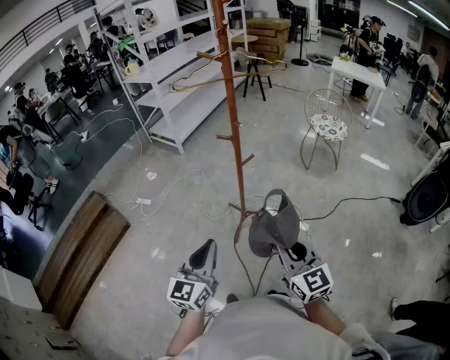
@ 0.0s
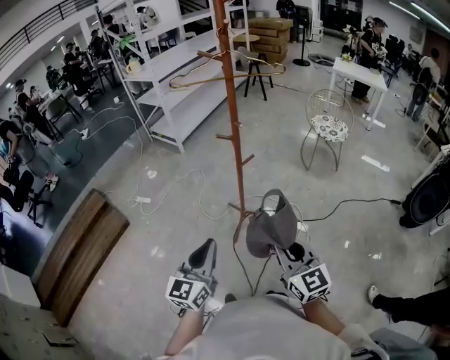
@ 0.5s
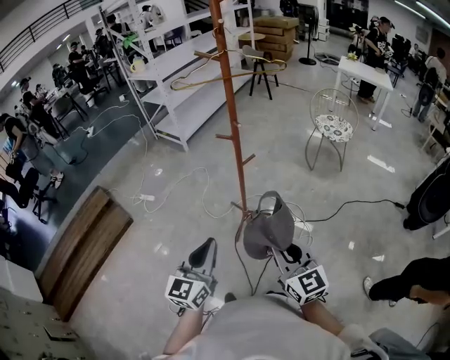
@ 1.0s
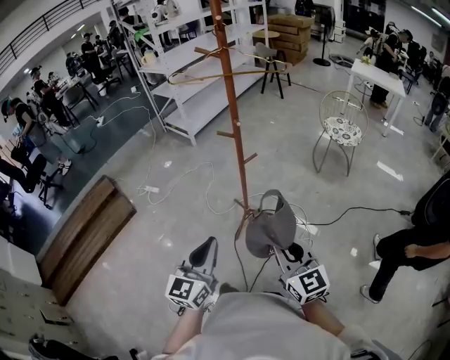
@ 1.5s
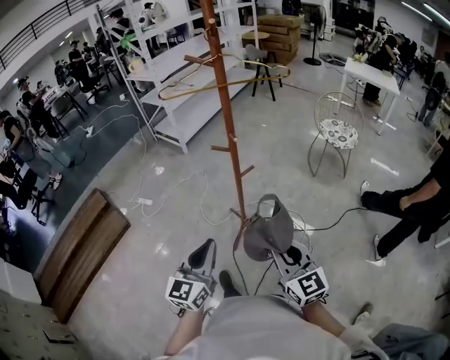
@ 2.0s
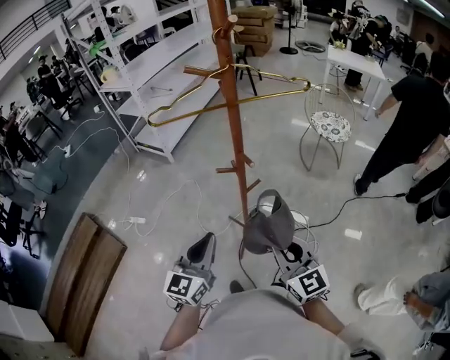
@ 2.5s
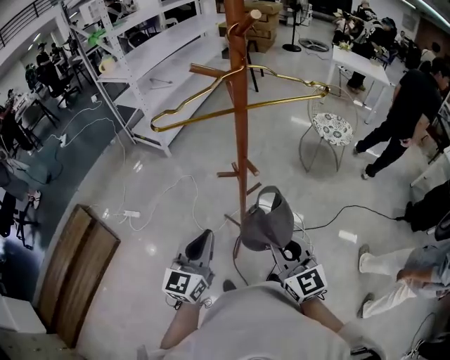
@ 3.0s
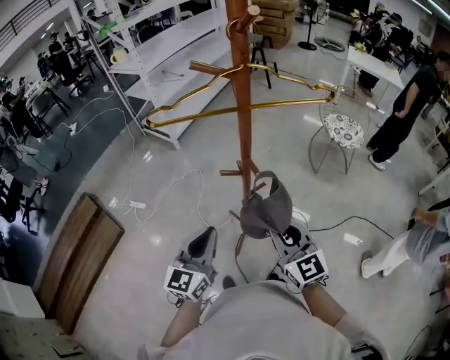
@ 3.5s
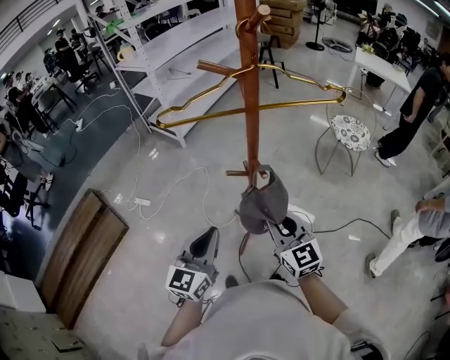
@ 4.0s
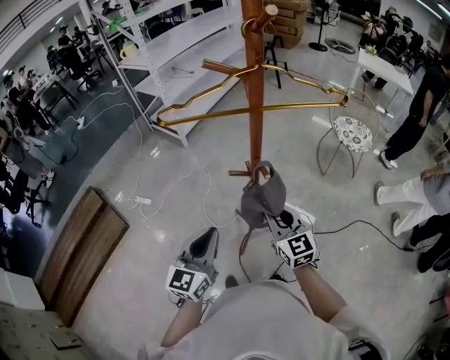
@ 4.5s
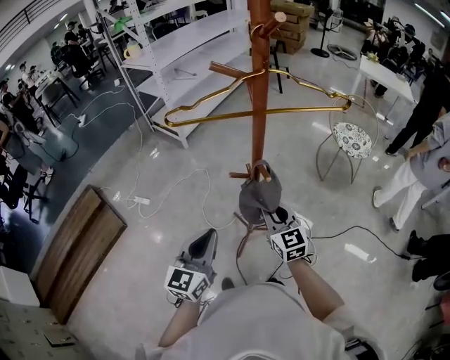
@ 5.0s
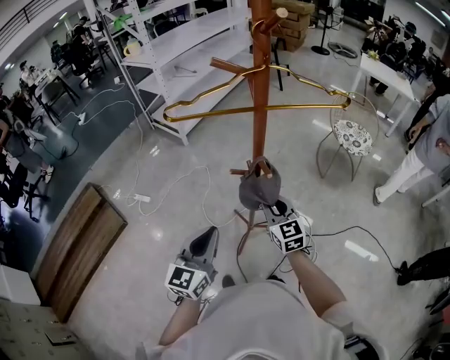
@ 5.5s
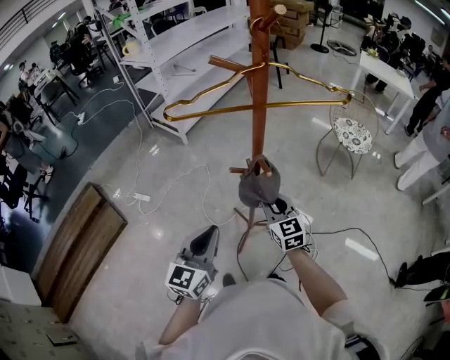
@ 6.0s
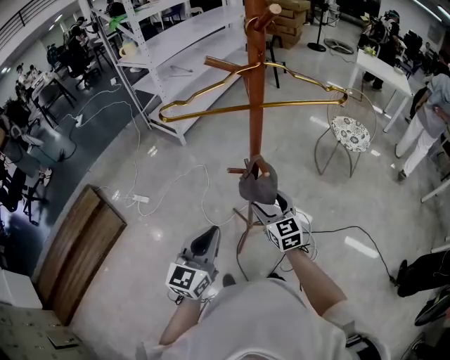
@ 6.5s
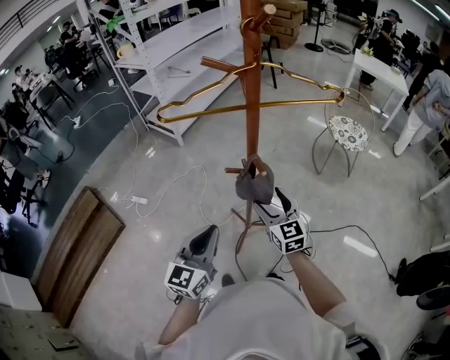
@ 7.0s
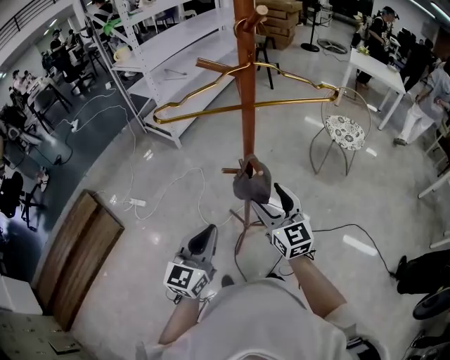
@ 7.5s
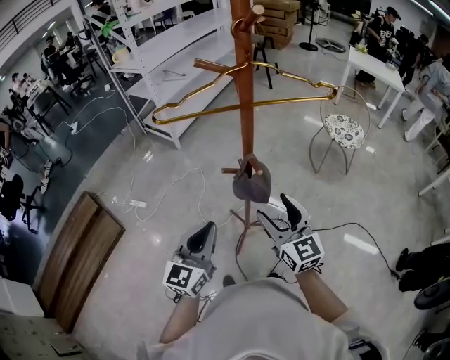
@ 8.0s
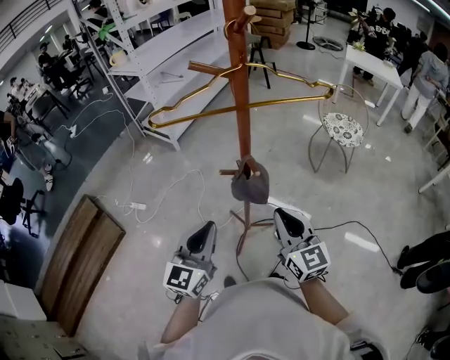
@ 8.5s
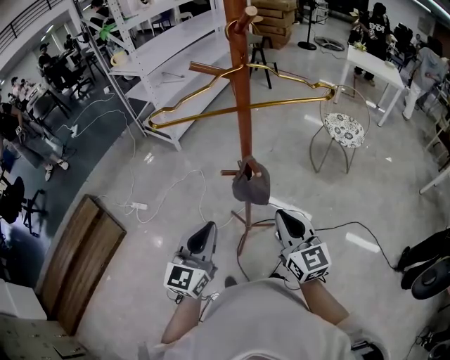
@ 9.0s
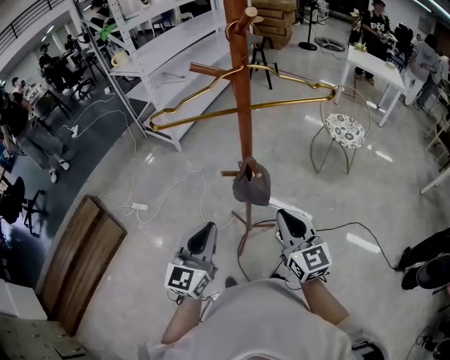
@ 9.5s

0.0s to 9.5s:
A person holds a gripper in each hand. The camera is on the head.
0.0s to 2.0s: Both grippers move forward, about 10 cm.
2.0s to 4.0s: Both grippers travel together forward, approximately 25 cm.
4.0s to 5.5s: The right gripper is displaced forward and downward by approximately 10 cm.
5.5s to 7.5s: The right gripper goes some 10 cm upward, and opens.
7.5s to 9.5s: The right gripper goes approximately 5 cm backward, and closes up.

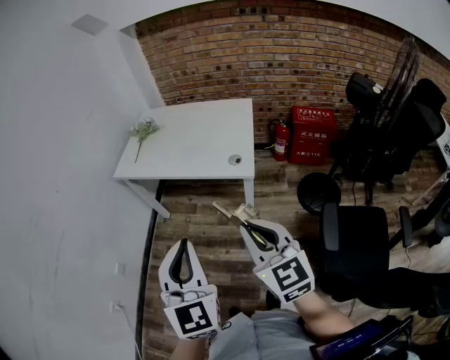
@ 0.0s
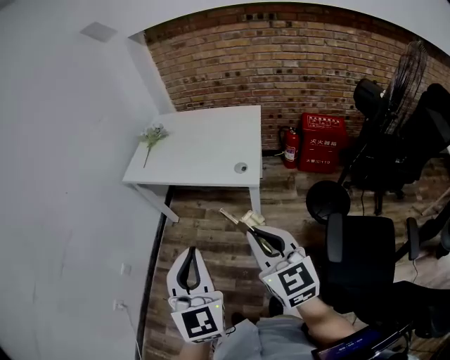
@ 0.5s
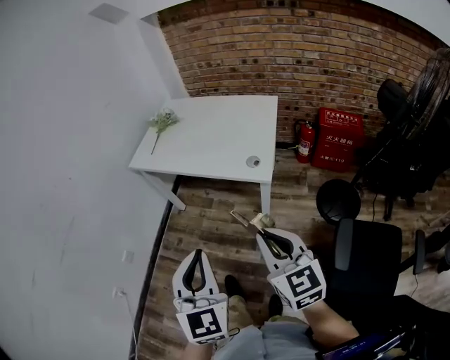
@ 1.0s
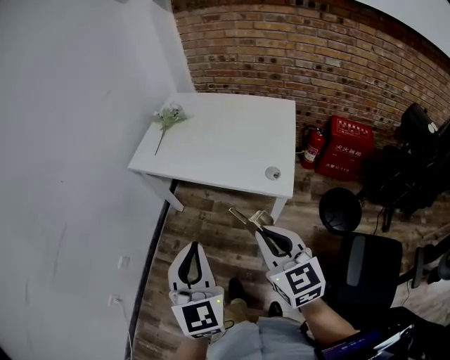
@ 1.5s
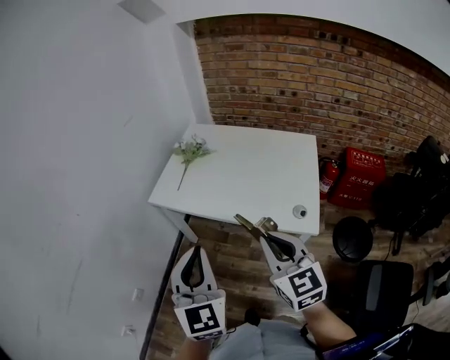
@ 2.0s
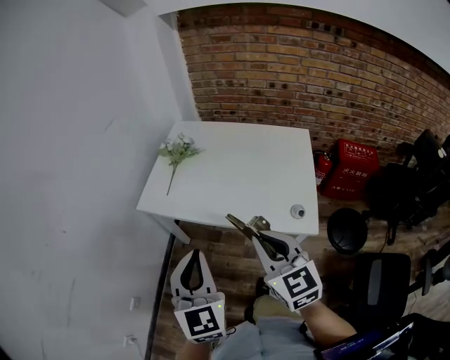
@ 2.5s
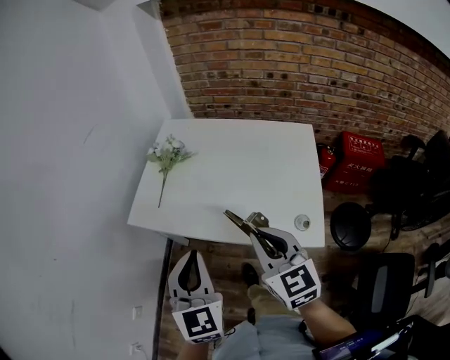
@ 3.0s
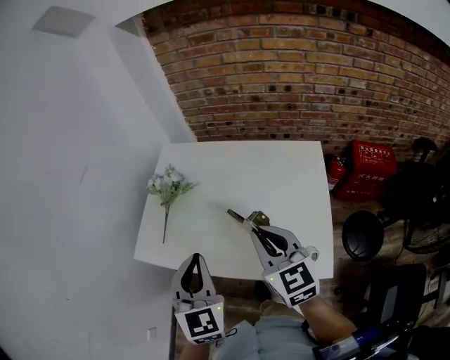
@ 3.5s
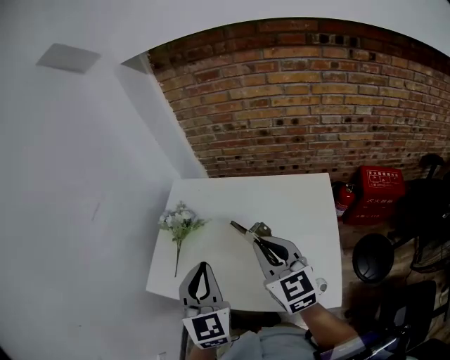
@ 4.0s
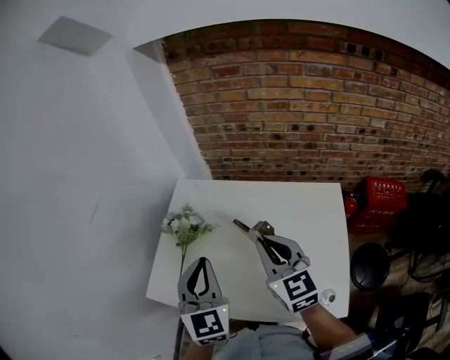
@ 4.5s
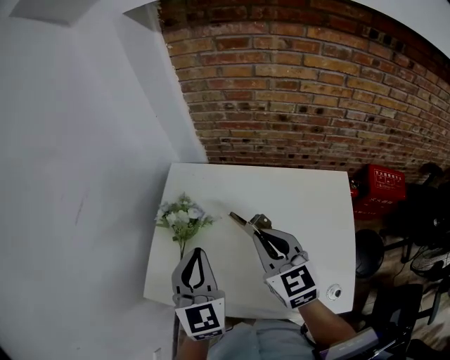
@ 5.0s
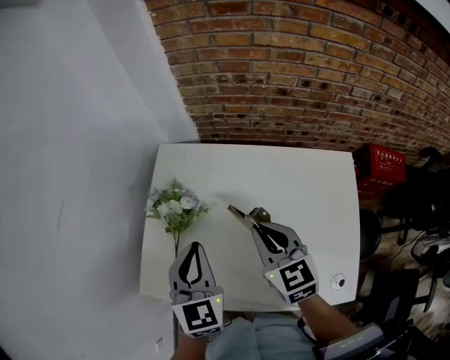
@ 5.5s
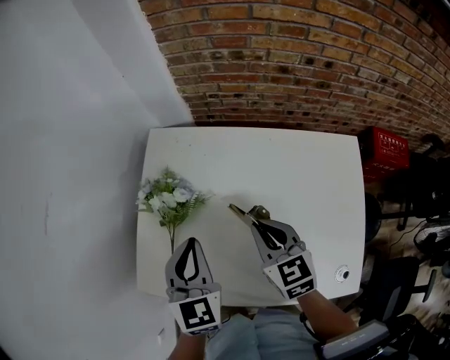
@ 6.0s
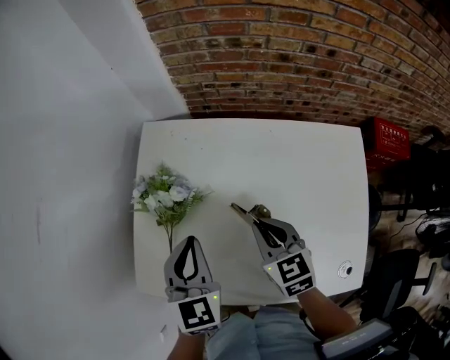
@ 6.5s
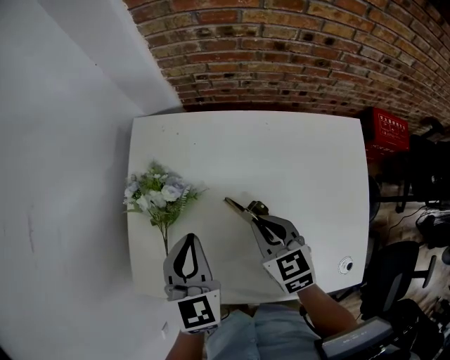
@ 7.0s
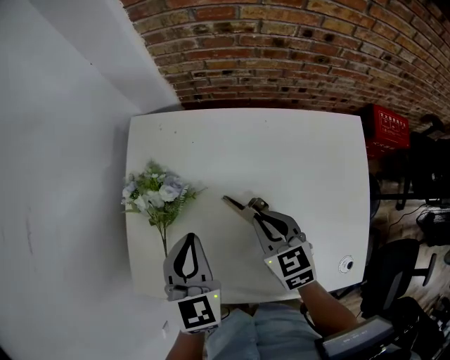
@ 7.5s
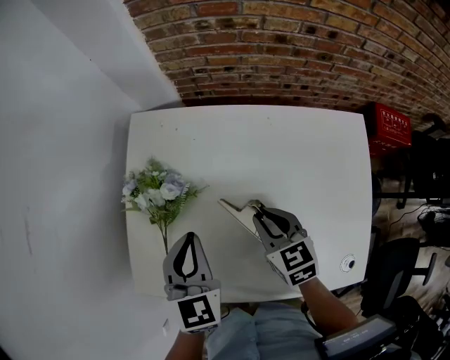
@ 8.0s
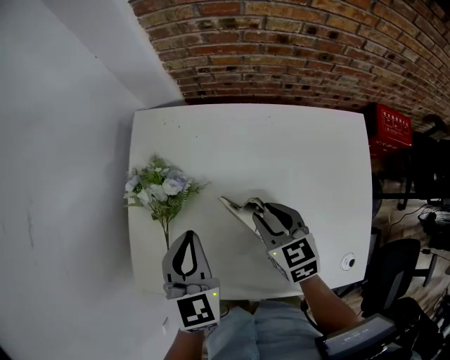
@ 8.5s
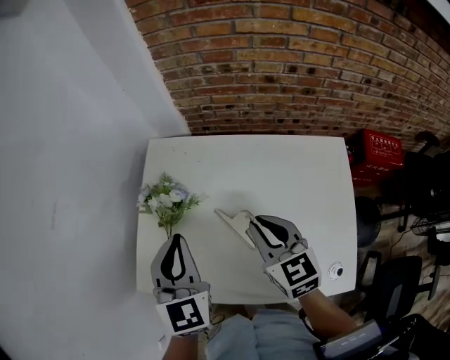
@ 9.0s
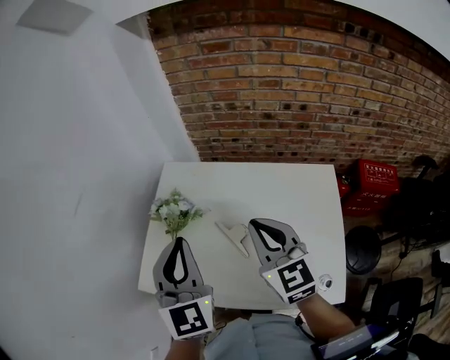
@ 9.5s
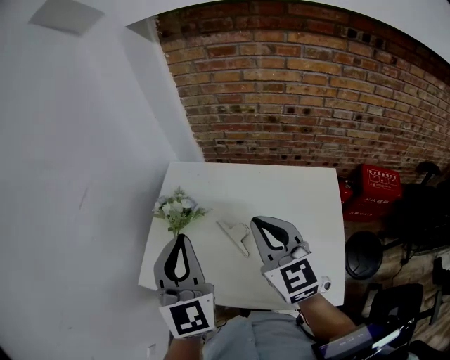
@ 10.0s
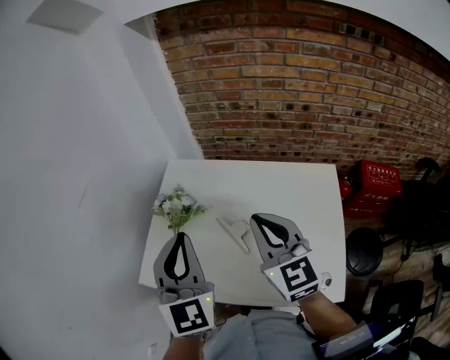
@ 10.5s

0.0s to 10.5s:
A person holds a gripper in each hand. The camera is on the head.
0.0s to 2.0s: The left gripper goes about 30 cm forward and to the left; the right gripper shifts some 25 cm forward.
2.0s to 4.0s: Both grippers travel together forward, some 35 cm.
4.0s to 6.5s: The left gripper moves forward, downward and to the left, about 25 cm; the right gripper is displaced downward and forward by about 25 cm, and swivels some 30 degrees.
6.5s to 8.5s: The right gripper opens its fingers.
8.5s to 10.5s: The left gripper travels upward and backward by about 25 cm, and rotates some 30 degrees, while the right gripper is displaced upward by approximately 25 cm, changes its angle by some 30 degrees, and closes.

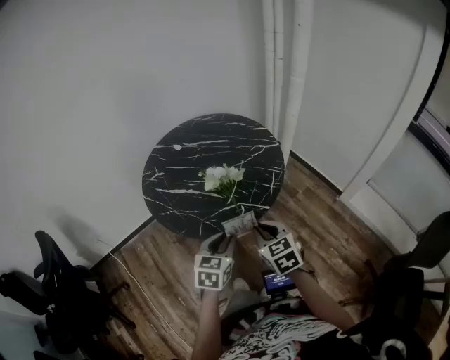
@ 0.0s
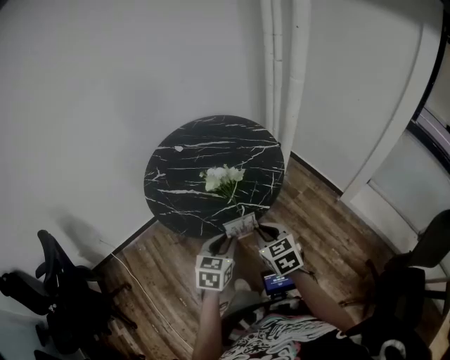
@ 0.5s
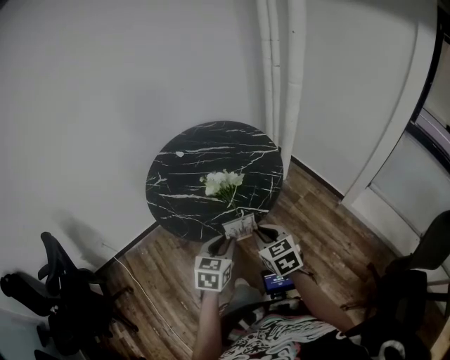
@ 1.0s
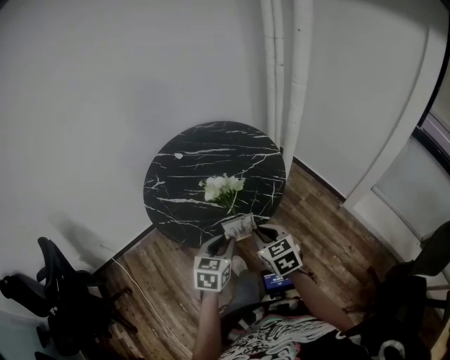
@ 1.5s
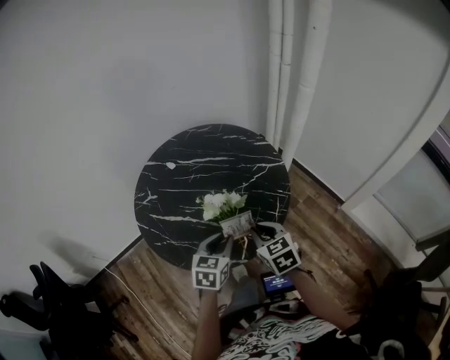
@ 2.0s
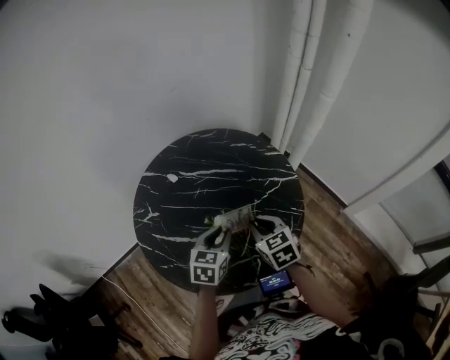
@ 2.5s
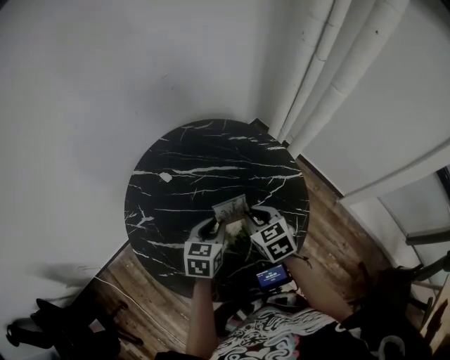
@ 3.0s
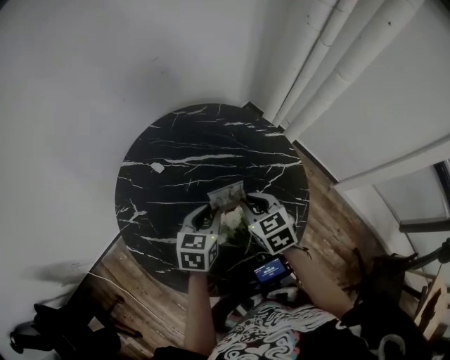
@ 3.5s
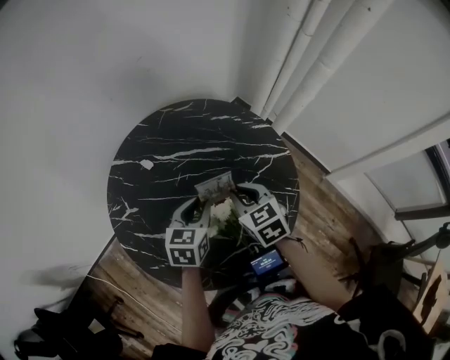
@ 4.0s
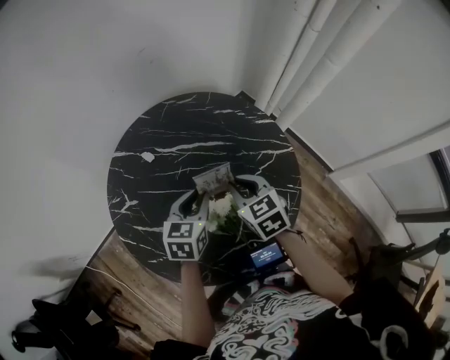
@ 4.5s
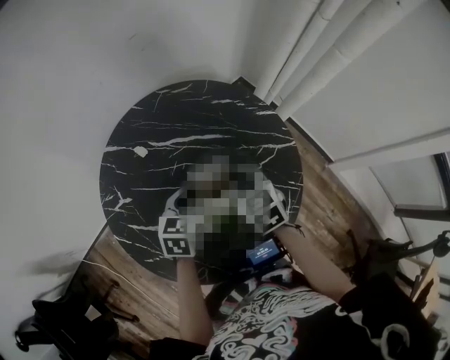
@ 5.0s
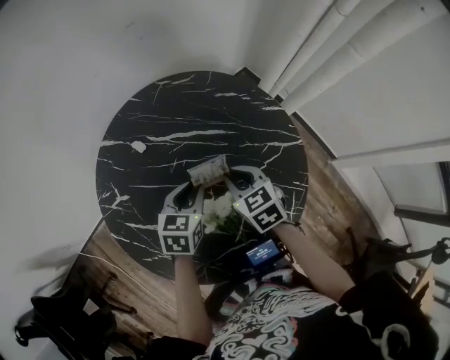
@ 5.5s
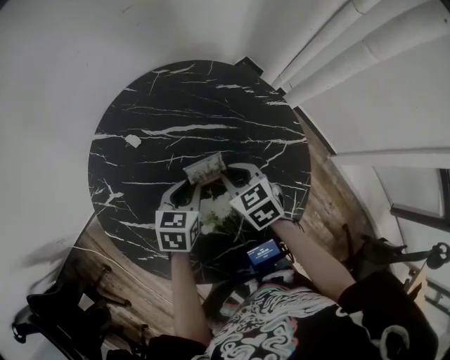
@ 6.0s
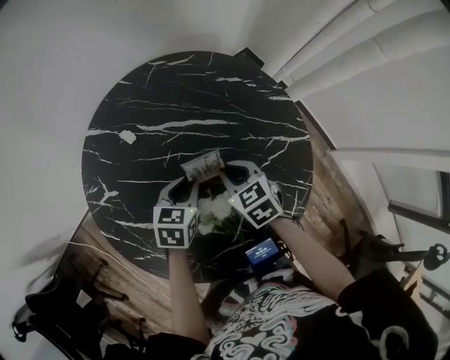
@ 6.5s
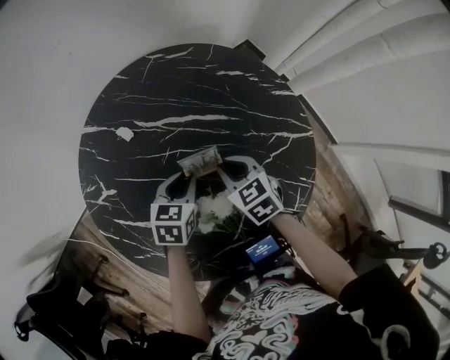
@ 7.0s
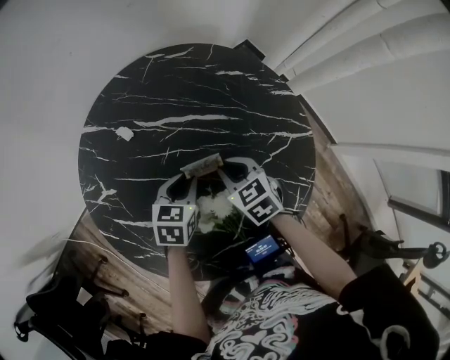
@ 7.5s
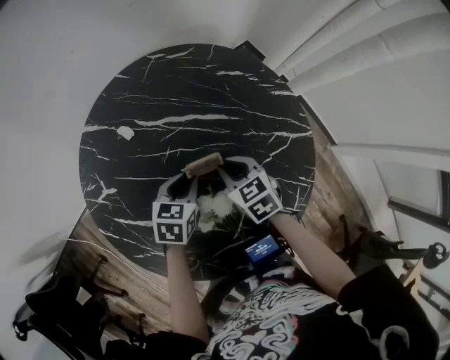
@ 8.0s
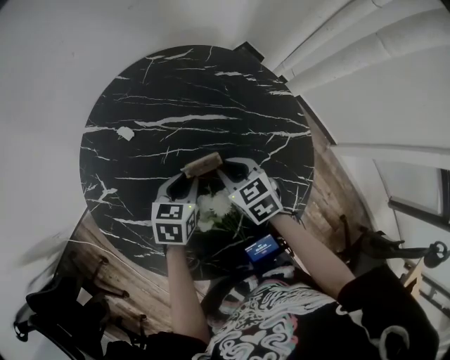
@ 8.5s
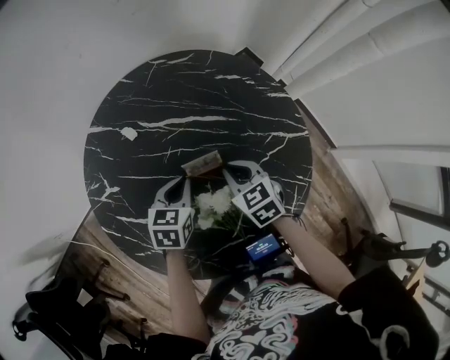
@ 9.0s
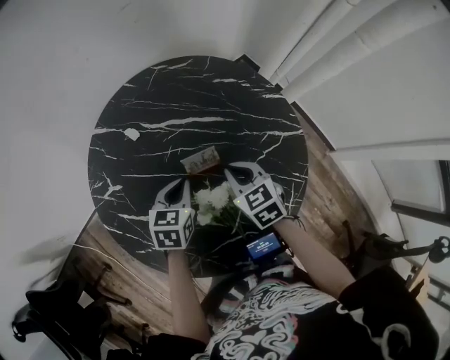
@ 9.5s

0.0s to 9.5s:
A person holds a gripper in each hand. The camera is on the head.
0.0s to 2.0s: Both grippers move forward, about 15 cm.
2.0s to 4.0s: Both grippers move forward, some 25 cm.
4.0s to 5.5s: Both grippers move downward, roughly 5 cm.
5.5s to 7.5s: The two grippers go some 10 cm downward.
7.5s to 9.5s: The left gripper moves approximately 5 cm; the right gripper shifts by roughly 5 cm.
